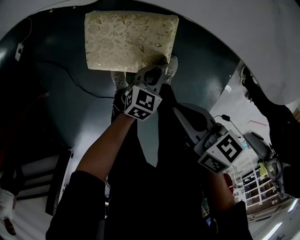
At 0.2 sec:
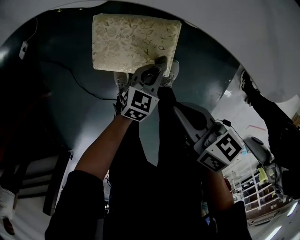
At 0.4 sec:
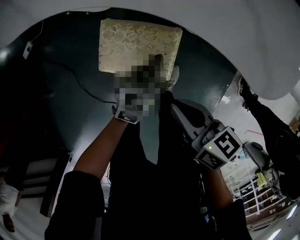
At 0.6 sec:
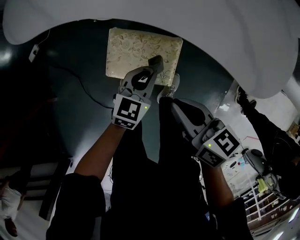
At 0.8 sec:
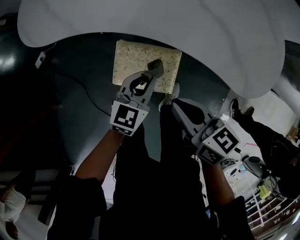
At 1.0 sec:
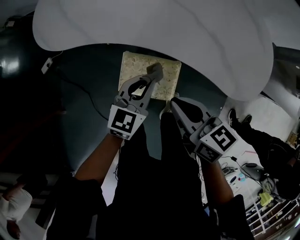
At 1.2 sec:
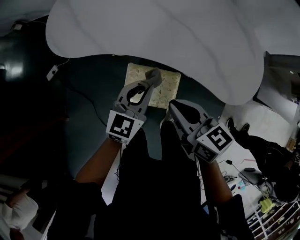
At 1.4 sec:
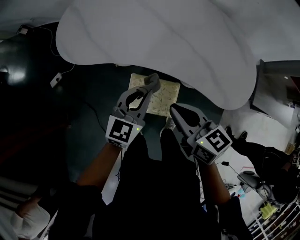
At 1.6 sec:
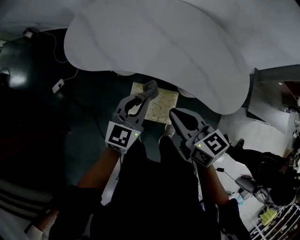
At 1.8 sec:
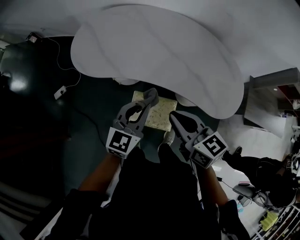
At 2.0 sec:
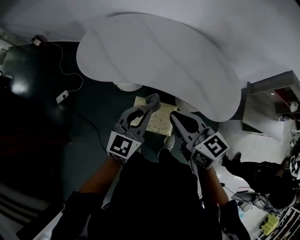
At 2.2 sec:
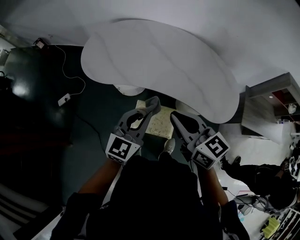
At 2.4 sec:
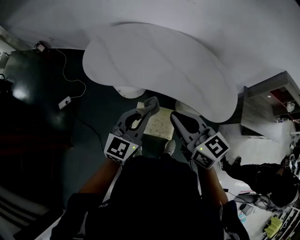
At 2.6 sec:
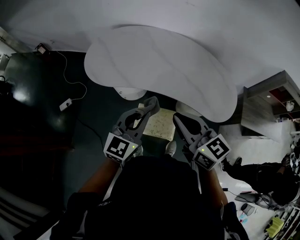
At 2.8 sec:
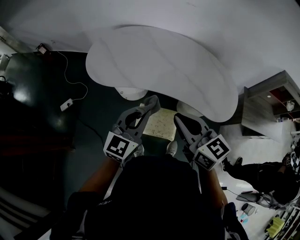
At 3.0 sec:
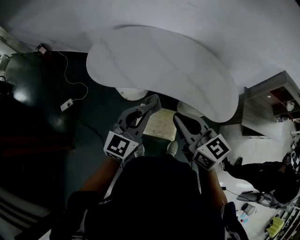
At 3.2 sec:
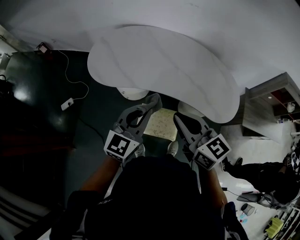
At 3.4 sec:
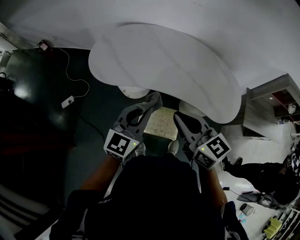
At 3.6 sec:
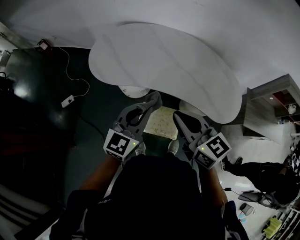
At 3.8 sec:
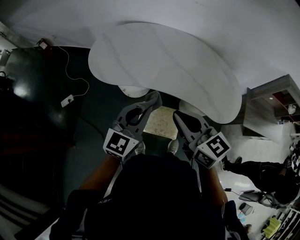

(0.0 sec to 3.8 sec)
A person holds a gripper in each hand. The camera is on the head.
0.0 sec - 1.2 sec: The right gripper is displaced upward and forward by some 25 cm, and swivels approximately 30 degrees. The left gripper goes roughly 40 cm upward and forward, and changes its angle by some 30 degrees.
1.2 sec - 2.6 sec: Both grippers travel together upward, roughly 20 cm. The right gripper turns by about 20 degrees.
2.6 sec - 3.8 sec: The grippers move only a little.

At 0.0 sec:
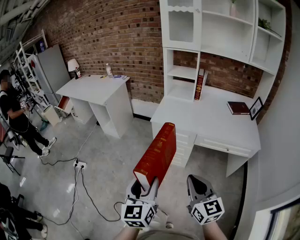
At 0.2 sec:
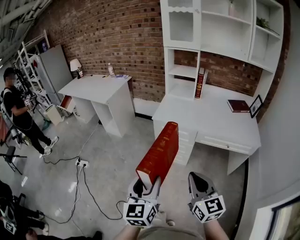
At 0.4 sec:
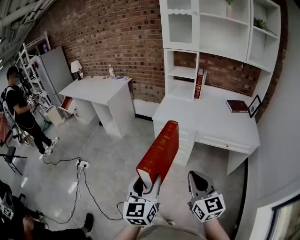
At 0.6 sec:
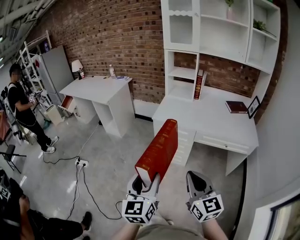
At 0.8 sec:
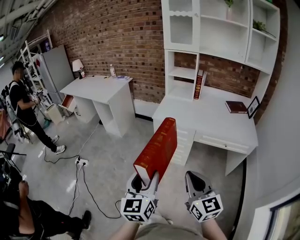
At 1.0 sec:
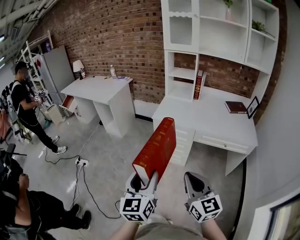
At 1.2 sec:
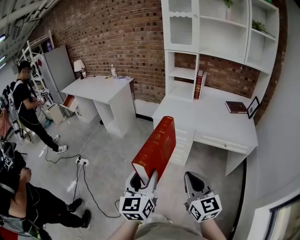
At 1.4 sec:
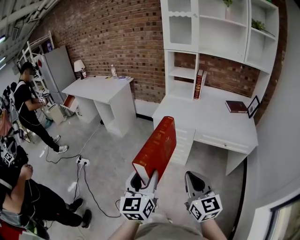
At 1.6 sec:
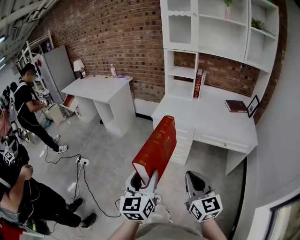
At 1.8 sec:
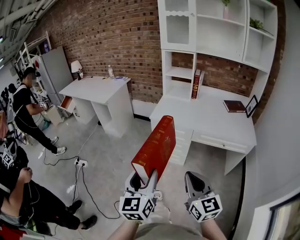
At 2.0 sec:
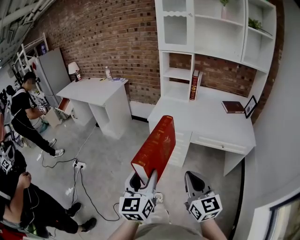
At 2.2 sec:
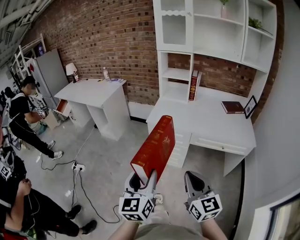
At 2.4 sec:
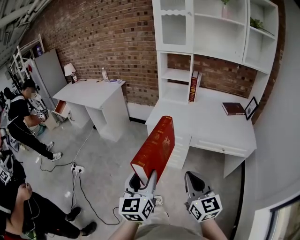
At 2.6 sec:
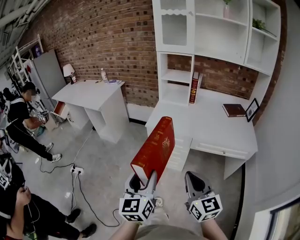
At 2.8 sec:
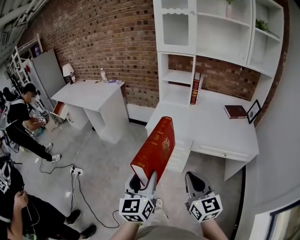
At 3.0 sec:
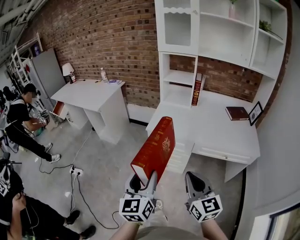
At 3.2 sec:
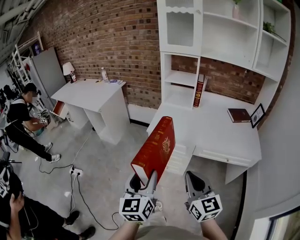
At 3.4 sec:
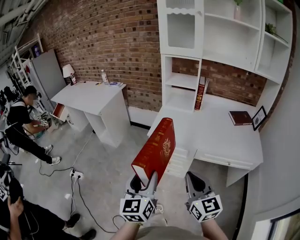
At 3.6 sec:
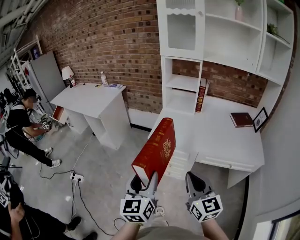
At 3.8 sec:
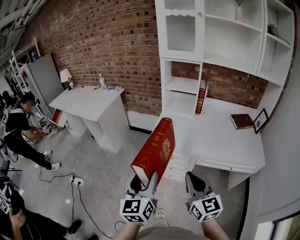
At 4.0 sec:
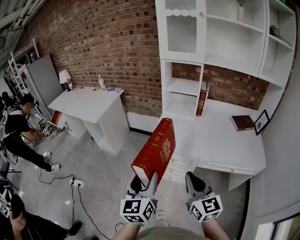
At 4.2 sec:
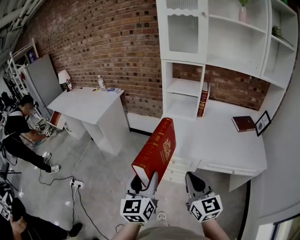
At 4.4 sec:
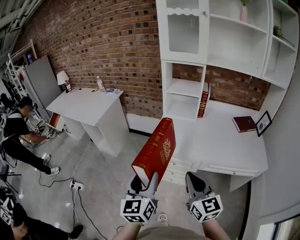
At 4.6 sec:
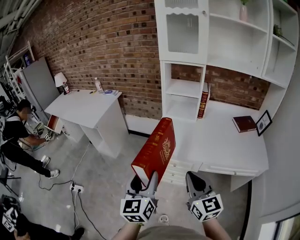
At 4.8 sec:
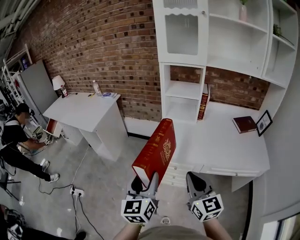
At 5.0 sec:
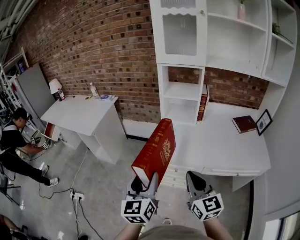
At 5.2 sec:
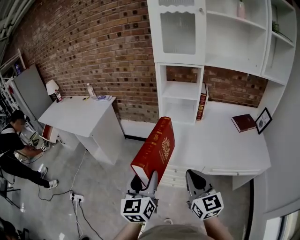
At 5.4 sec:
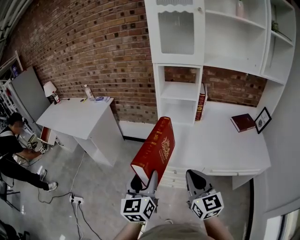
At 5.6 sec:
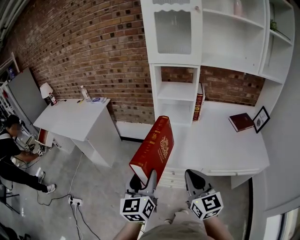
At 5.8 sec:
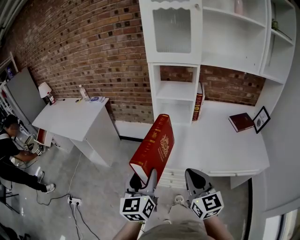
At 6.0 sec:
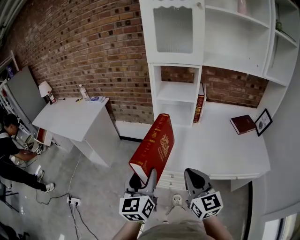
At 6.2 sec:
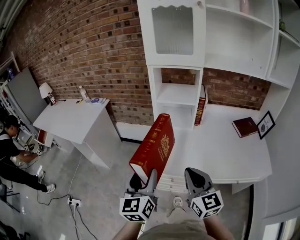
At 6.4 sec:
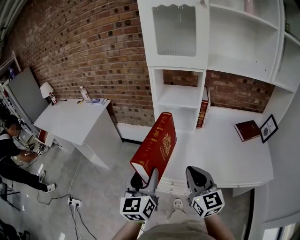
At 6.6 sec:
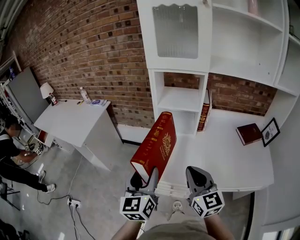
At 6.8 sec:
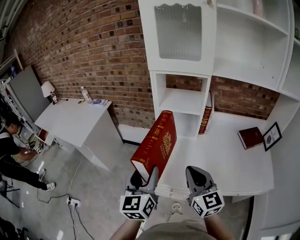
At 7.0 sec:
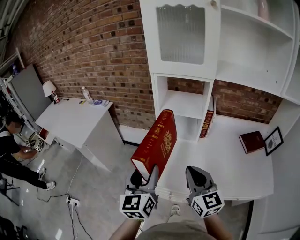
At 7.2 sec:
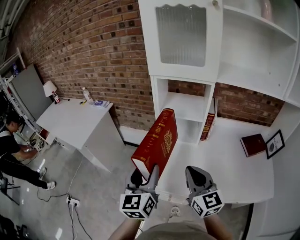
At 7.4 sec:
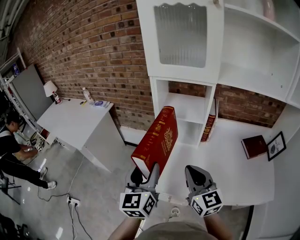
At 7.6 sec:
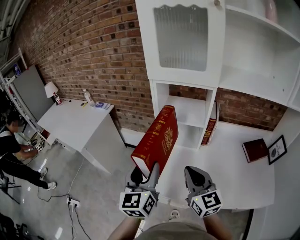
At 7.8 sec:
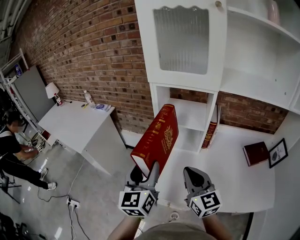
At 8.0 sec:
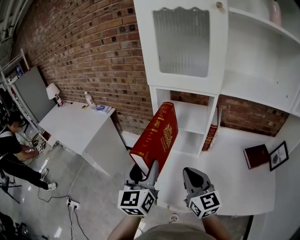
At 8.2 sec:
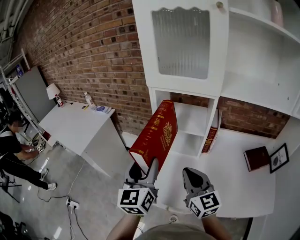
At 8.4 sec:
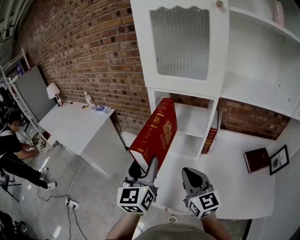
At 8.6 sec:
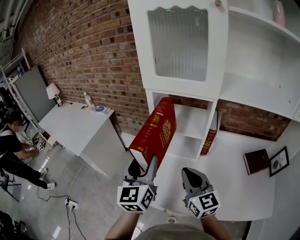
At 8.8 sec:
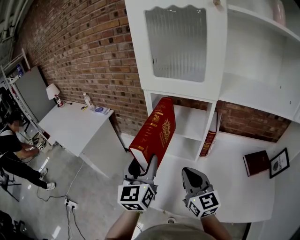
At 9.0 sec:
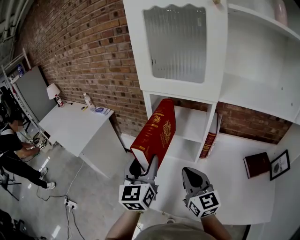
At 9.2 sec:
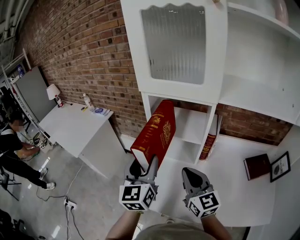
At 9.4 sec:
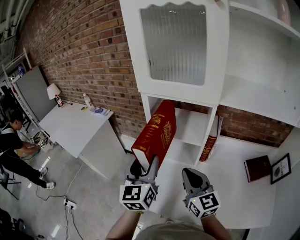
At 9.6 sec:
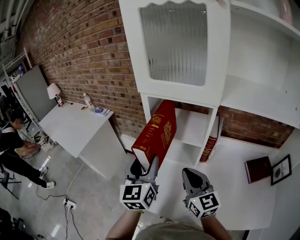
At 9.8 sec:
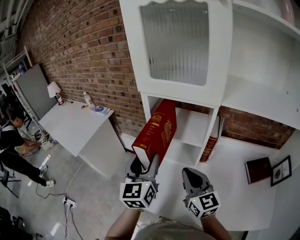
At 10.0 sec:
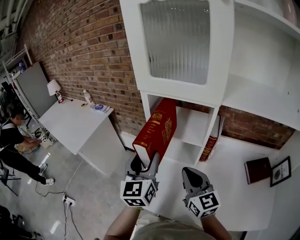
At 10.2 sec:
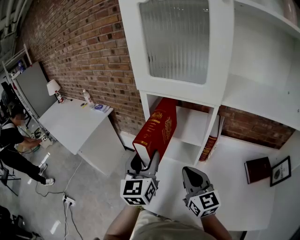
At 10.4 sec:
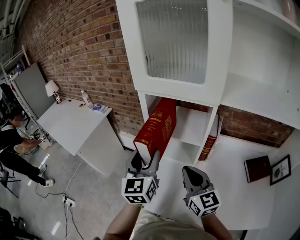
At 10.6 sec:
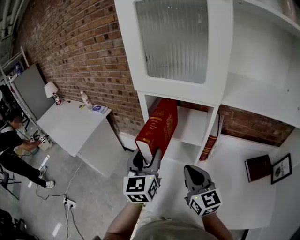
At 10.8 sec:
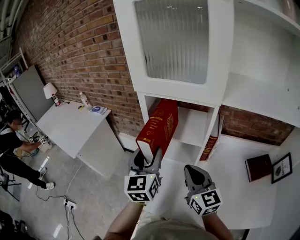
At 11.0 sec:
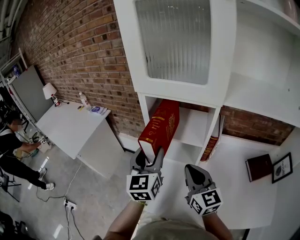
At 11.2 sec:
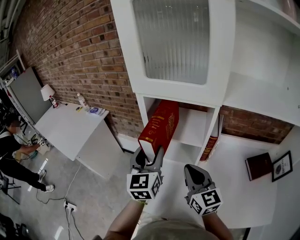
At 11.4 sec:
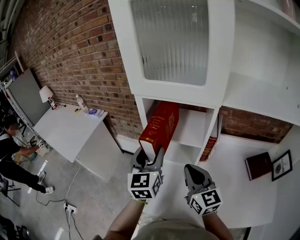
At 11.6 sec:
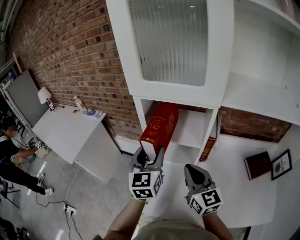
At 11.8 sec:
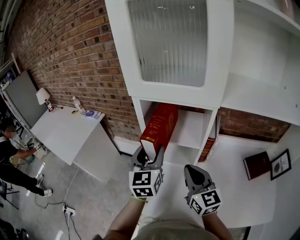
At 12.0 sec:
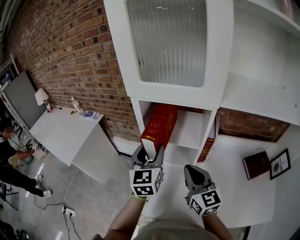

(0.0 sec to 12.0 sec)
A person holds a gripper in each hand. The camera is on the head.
0.0 sec - 1.6 sec: Both grippers move backward, roughly 5 cm.
1.6 sec - 3.0 sec: The two grippers go some 15 cm forward.
3.0 sec - 4.4 sec: Both grippers travel together forward, approximately 15 cm.
4.4 sec - 6.0 sec: Both grippers move forward, some 15 cm.
6.0 sec - 7.6 sec: Both grippers move forward, roughly 20 cm.
7.6 sec - 9.0 sec: The two grippers go some 10 cm forward.
9.0 sec - 10.4 sec: The left gripper ends up about 5 cm from where it was.
10.4 sec - 12.0 sec: The left gripper heads forward, covering approximately 5 cm.

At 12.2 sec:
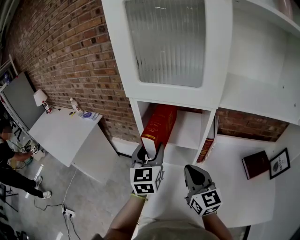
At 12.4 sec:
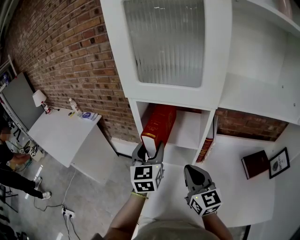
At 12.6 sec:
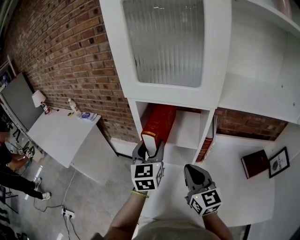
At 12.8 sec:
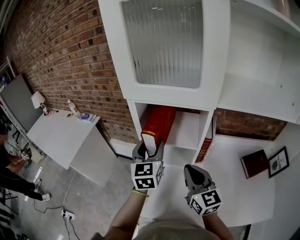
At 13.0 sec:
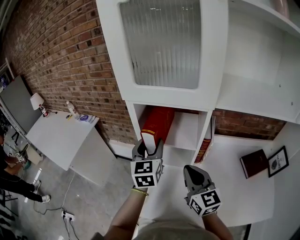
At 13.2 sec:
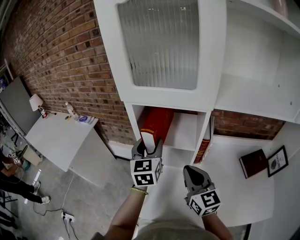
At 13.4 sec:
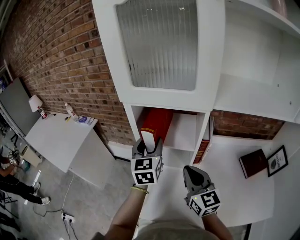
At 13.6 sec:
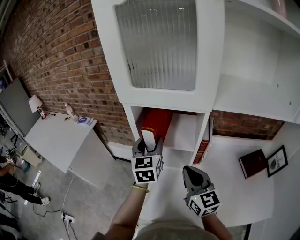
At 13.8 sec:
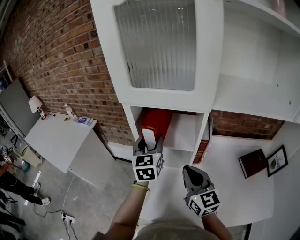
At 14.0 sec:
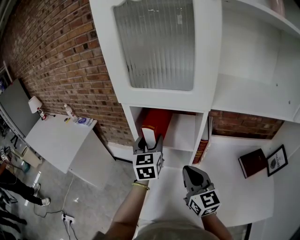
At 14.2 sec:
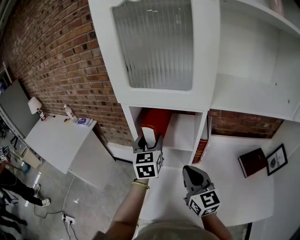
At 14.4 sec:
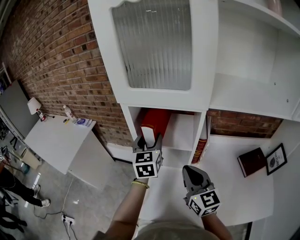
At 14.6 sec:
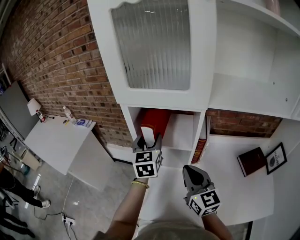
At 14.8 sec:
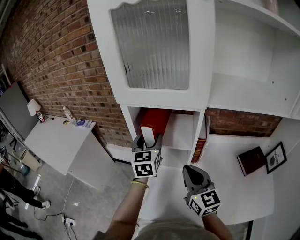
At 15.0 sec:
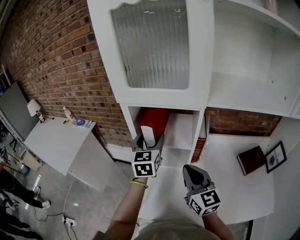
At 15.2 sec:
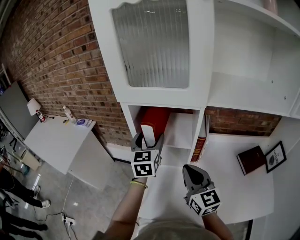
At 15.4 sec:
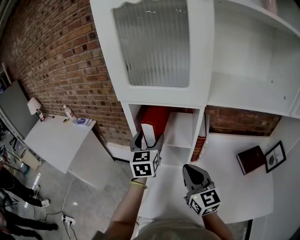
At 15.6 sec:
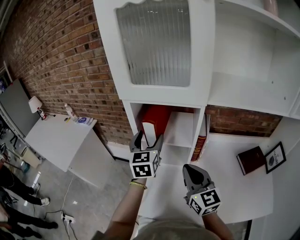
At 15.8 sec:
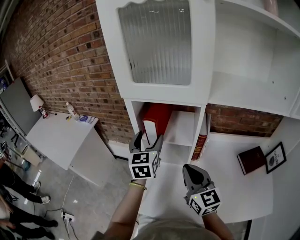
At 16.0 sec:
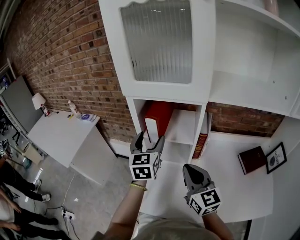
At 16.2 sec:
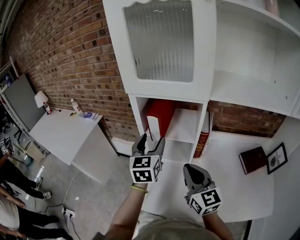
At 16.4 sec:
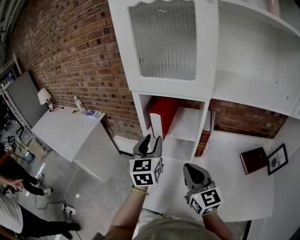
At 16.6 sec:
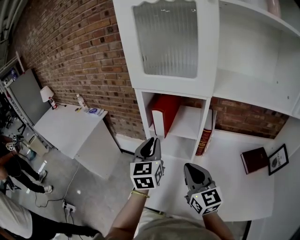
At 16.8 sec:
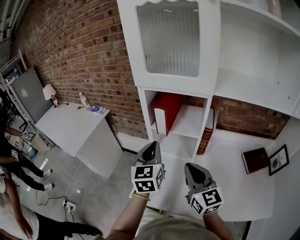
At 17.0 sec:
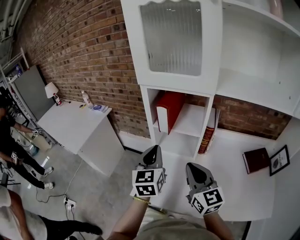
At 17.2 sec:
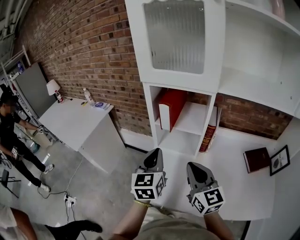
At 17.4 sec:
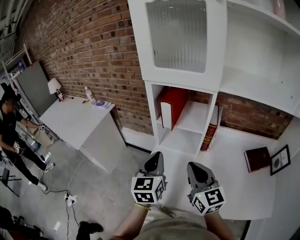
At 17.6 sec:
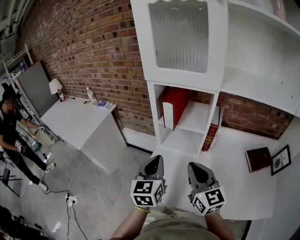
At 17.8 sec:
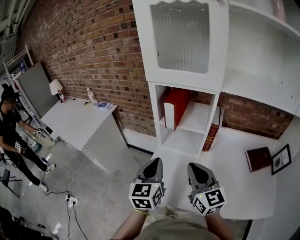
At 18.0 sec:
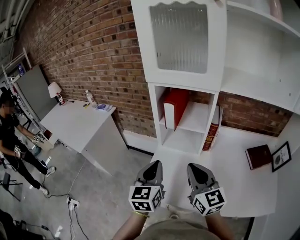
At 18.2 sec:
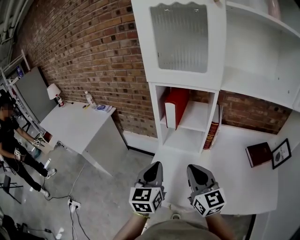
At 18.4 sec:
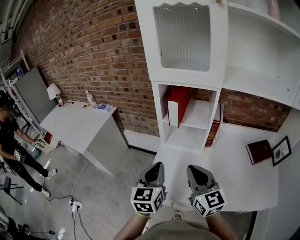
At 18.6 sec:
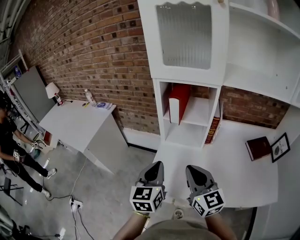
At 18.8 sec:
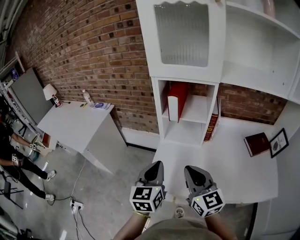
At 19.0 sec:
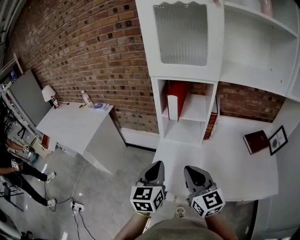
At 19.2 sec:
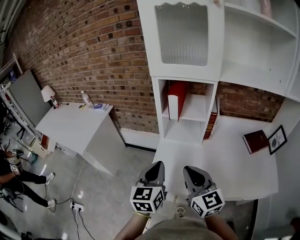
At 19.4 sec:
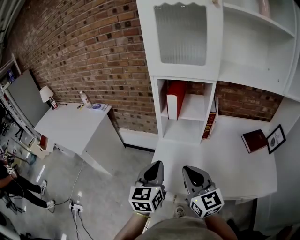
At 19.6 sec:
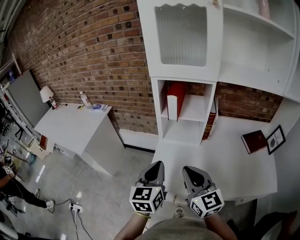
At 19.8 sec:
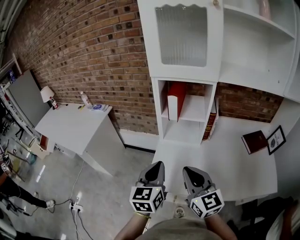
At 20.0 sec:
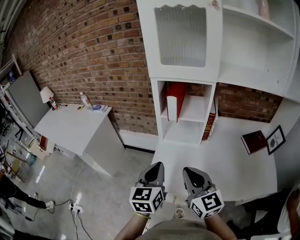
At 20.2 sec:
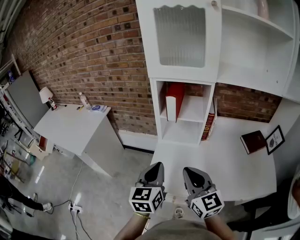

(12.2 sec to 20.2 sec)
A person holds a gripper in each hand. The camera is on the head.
12.2 sec - 13.8 sec: The left gripper shifts some 5 cm forward.
13.8 sec - 15.4 sec: The grippers stay close to where they were, moving slightly.
15.4 sec - 17.0 sec: The right gripper shifts roughly 5 cm backward. Meanwhile the left gripper heads backward, covering approximately 15 cm, and closes up.
17.0 sec - 18.6 sec: The left gripper is displaced backward and to the left by some 10 cm. The right gripper moves to the left and backward, roughly 10 cm.
18.6 sec - 20.2 sec: The grippers make only small movements.
